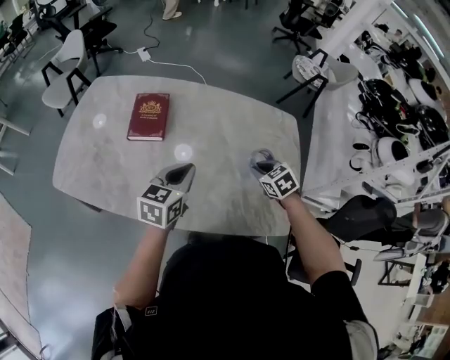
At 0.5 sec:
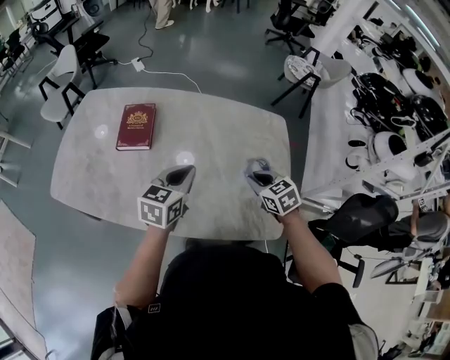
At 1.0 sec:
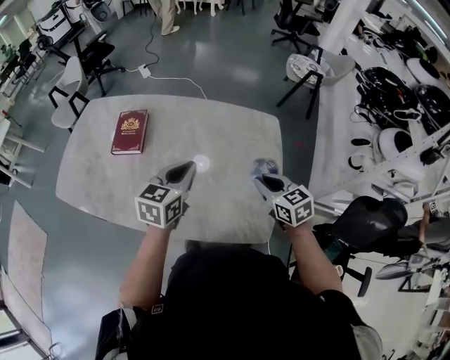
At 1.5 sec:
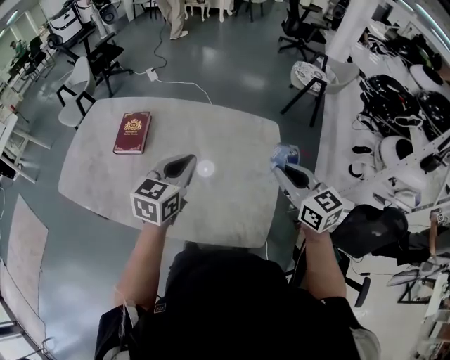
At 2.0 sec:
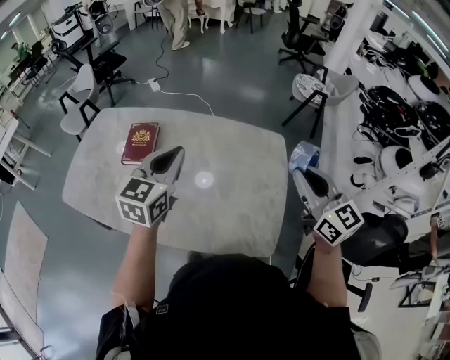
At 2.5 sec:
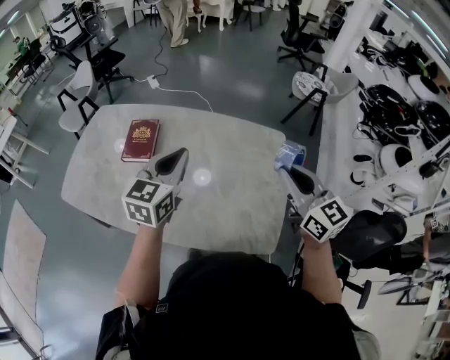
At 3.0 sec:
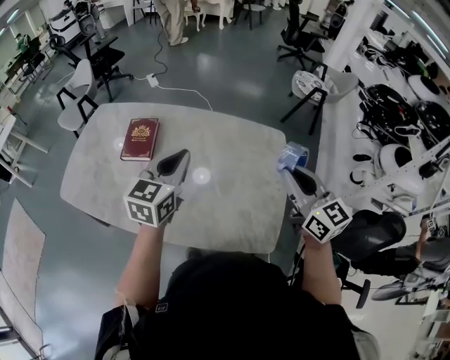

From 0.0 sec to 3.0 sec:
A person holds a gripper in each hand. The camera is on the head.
From 0.0 sec to 1.5 sec: The two grippers go roughly 25 cm to the right and upward. The right gripper tilts its fingers some 40 degrees upward.
From 1.5 sec to 3.0 sec: The left gripper heads to the left, covering roughly 10 cm, while the right gripper travels to the left and upward by roughly 10 cm.

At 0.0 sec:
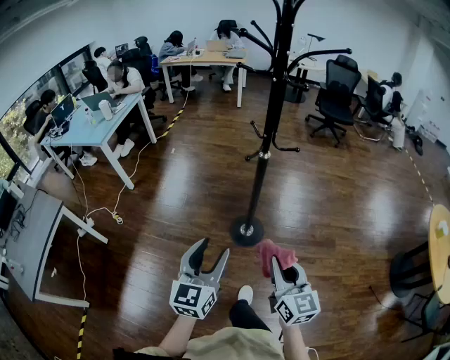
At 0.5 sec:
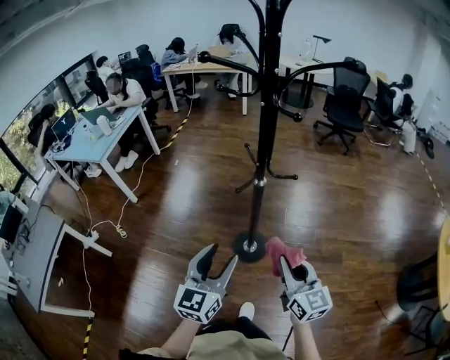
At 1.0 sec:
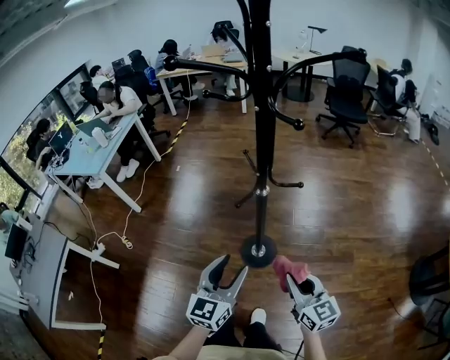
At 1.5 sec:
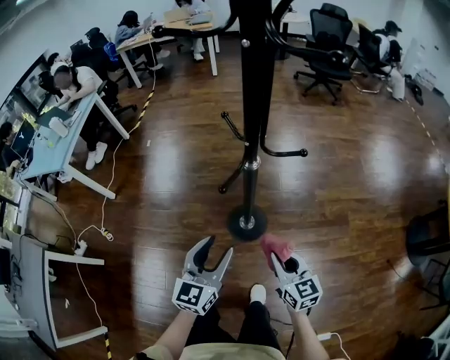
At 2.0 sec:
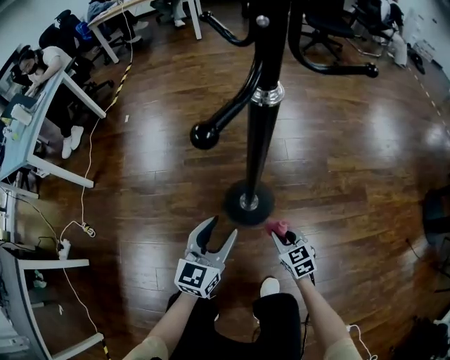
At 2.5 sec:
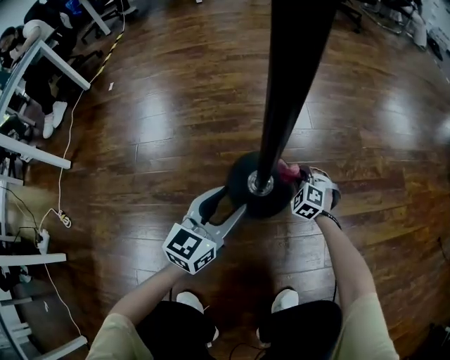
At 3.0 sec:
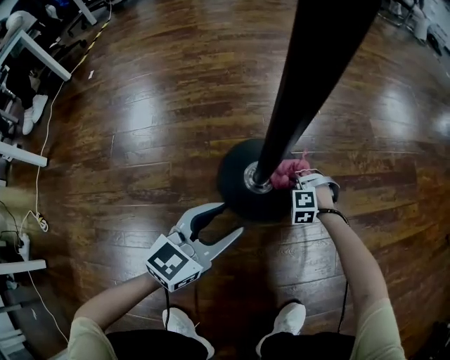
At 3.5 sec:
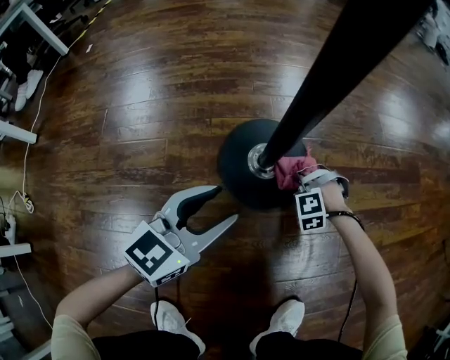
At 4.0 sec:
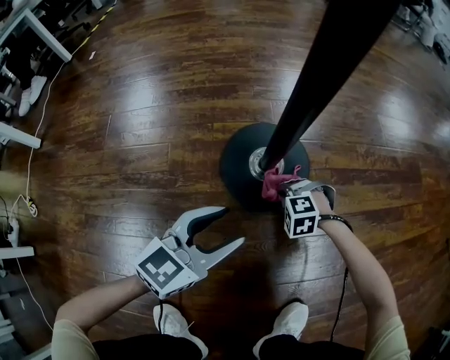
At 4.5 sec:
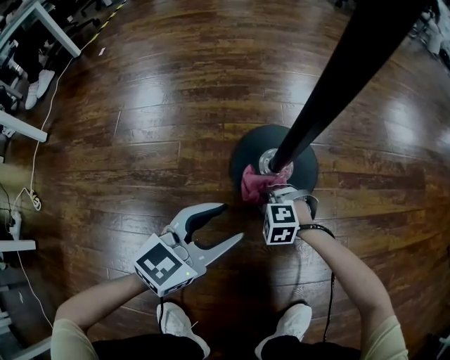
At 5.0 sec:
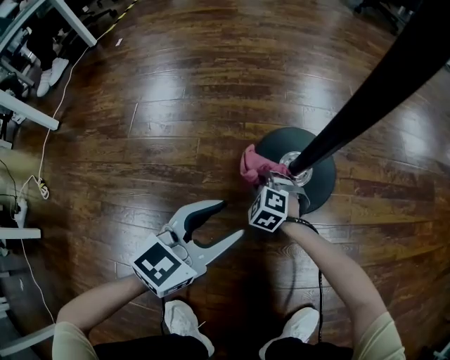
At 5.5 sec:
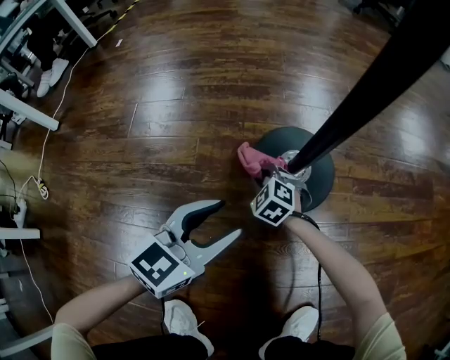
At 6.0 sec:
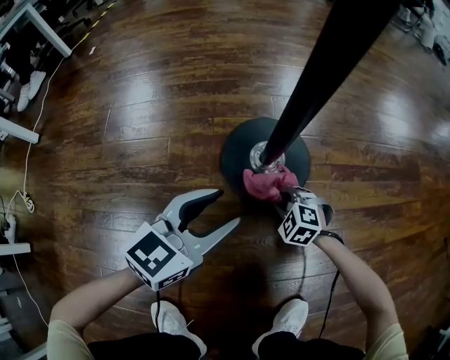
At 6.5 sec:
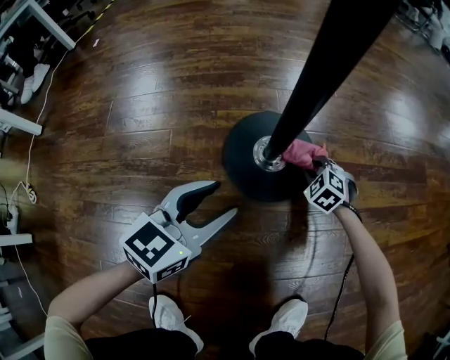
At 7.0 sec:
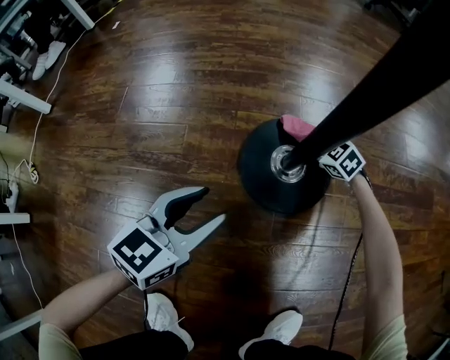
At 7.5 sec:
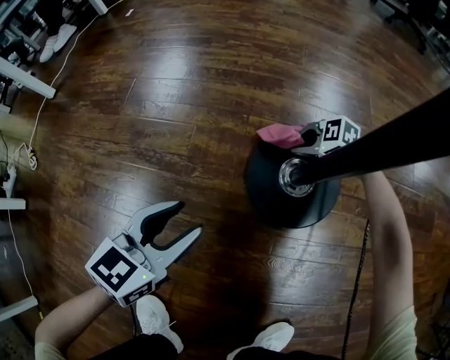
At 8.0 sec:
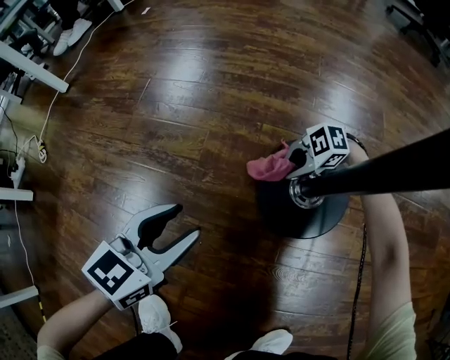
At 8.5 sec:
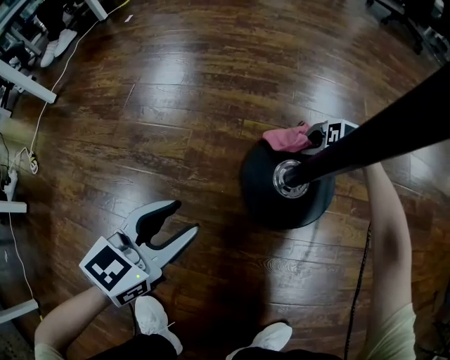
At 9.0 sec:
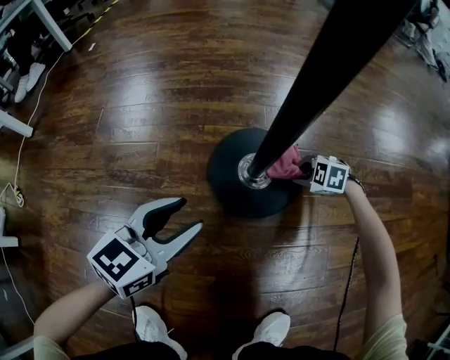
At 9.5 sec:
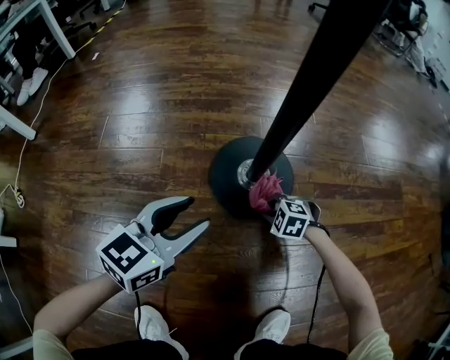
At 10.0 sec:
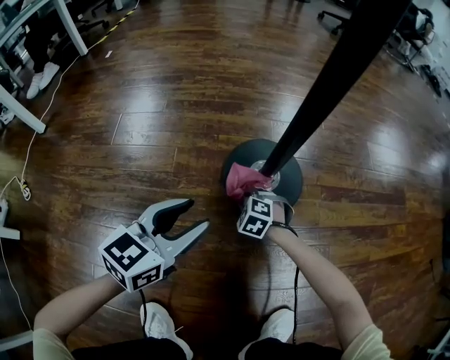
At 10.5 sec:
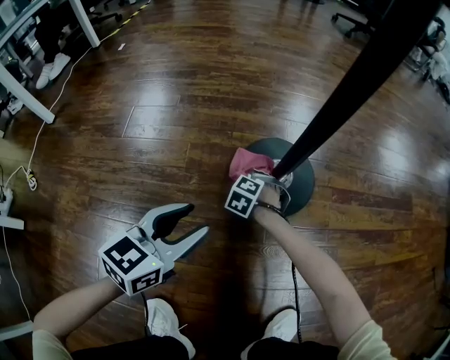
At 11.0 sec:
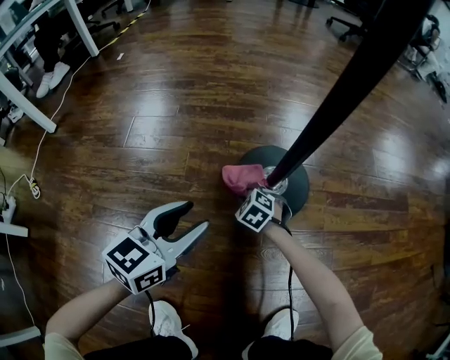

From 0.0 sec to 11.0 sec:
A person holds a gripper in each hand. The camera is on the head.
From 0.0 sec to 2.0 sec: Both grippers travel together downward and forward, roughly 60 cm. The right gripper points its fingers about 30 degrees further downward. Meanwhile the left gripper swivels some 20 degrees.
From 2.0 sec to 3.5 sec: Both grippers move downward, approximately 40 cm. The left gripper changes its angle by about 20 degrees; the right gripper rolls counterclockwise, seen from behind, by roughly 80 degrees.
From 3.5 sec to 5.5 sec: The left gripper moves roughly 5 cm. Meanwhile the right gripper ends up approximately 25 cm from where it was, and twists roughly 40 degrees clockwise, seen from behind.
From 5.5 sec to 7.5 sec: The left gripper changes place by some 5 cm; the right gripper swivels some 40 degrees.
From 7.5 sec to 9.0 sec: The right gripper shifts by approximately 20 cm; the left gripper shifts by about 10 cm.
From 9.0 sec to 11.0 sec: The left gripper ends up roughly 10 cm from where it was. The right gripper changes place by approximately 25 cm, and turns by approximately 20 degrees.

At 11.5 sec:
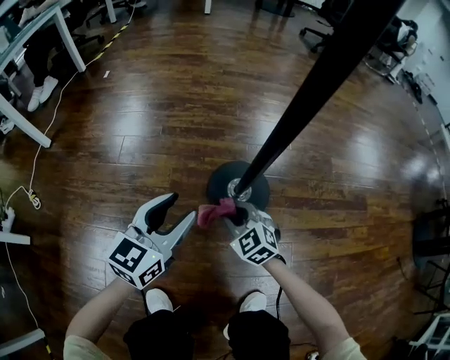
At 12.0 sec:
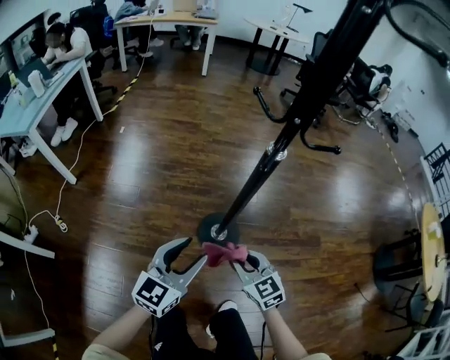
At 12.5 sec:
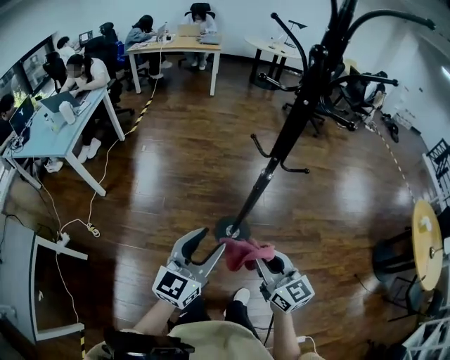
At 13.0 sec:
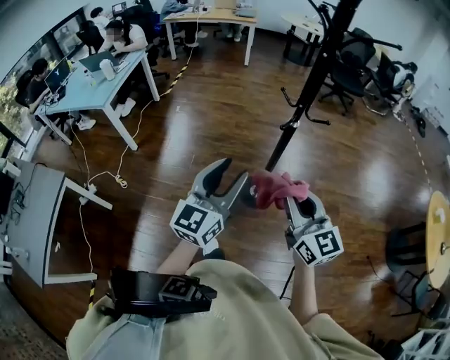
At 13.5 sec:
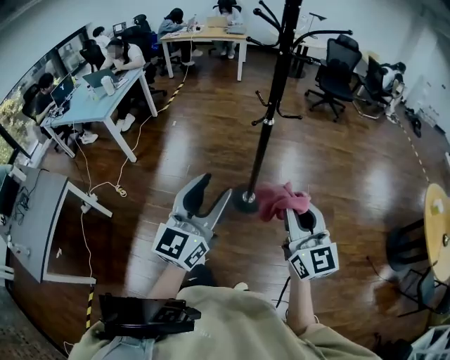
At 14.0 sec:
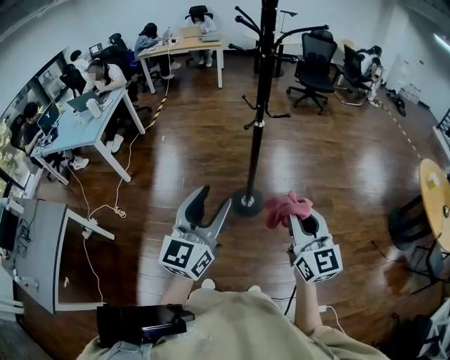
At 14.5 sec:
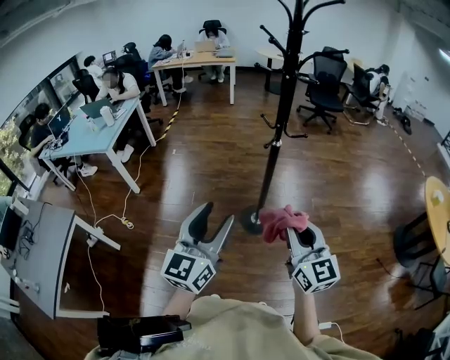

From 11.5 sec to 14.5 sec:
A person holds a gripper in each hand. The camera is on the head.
From 11.5 sec to 13.0 sec: The two grippers go about 80 cm upward. The left gripper turns by about 20 degrees; the right gripper angles its fingers upward, by about 40 degrees.
From 13.0 sec to 14.5 sec: Both grippers move backward, some 15 cm.

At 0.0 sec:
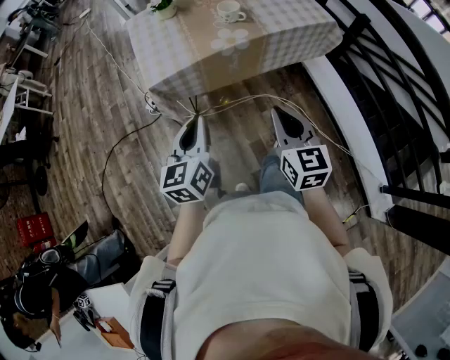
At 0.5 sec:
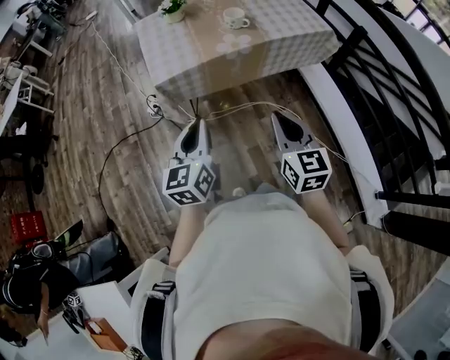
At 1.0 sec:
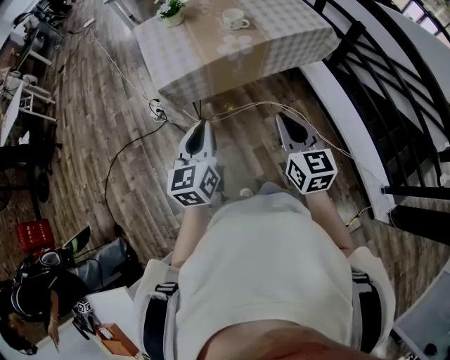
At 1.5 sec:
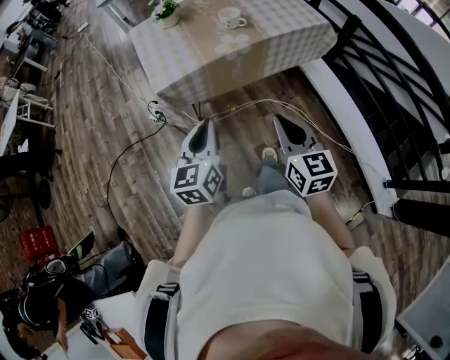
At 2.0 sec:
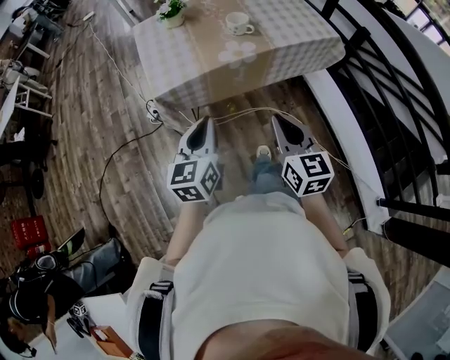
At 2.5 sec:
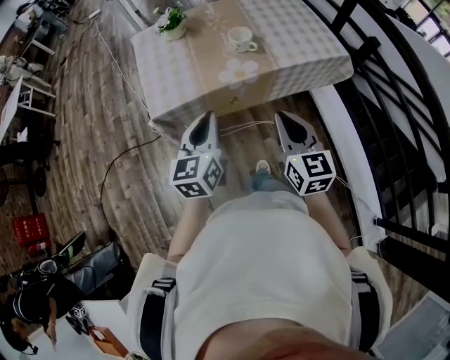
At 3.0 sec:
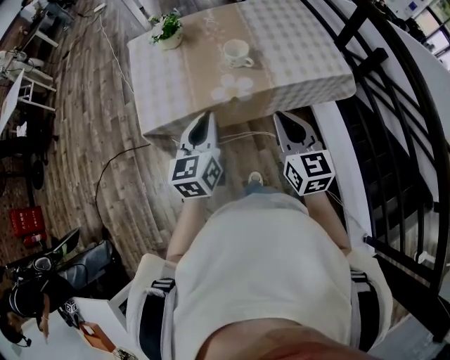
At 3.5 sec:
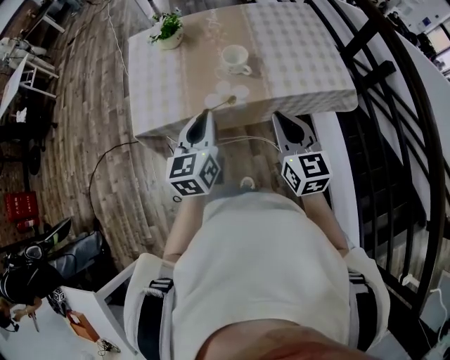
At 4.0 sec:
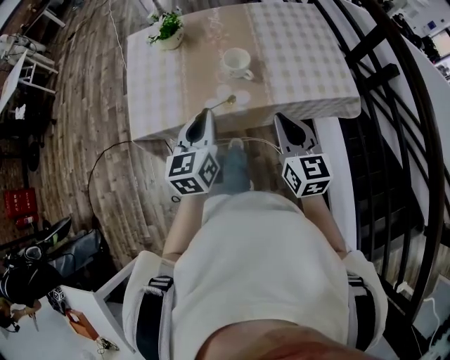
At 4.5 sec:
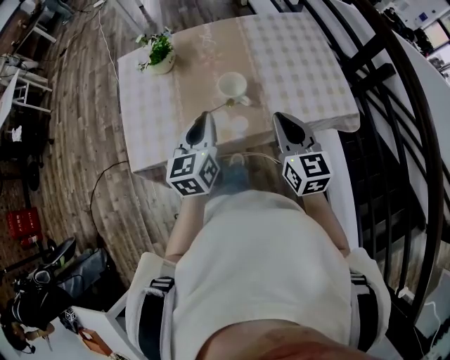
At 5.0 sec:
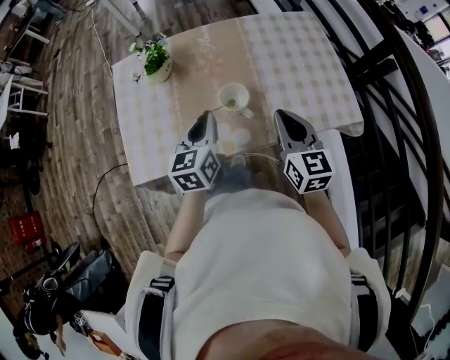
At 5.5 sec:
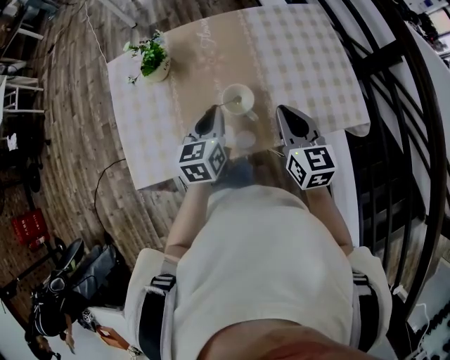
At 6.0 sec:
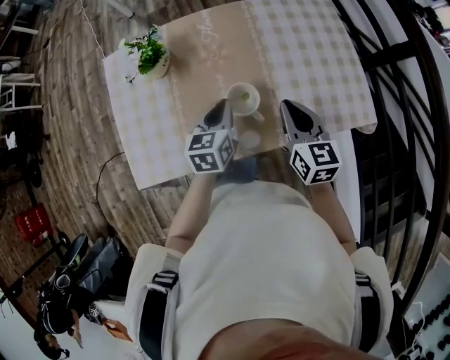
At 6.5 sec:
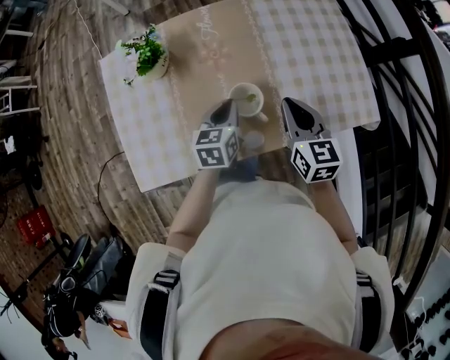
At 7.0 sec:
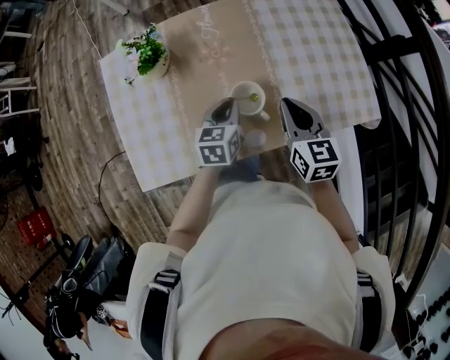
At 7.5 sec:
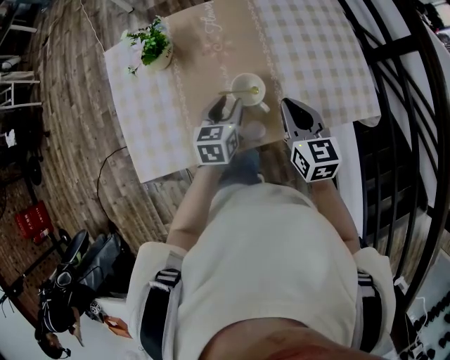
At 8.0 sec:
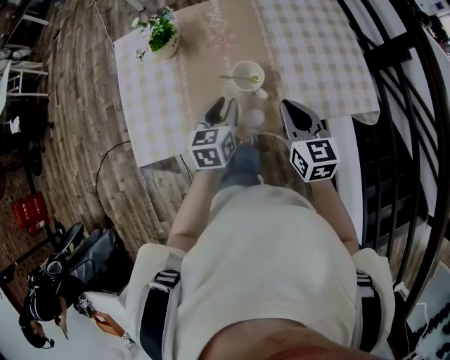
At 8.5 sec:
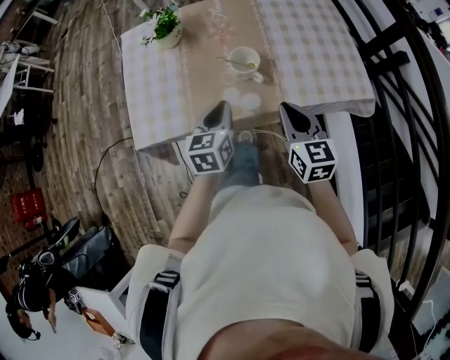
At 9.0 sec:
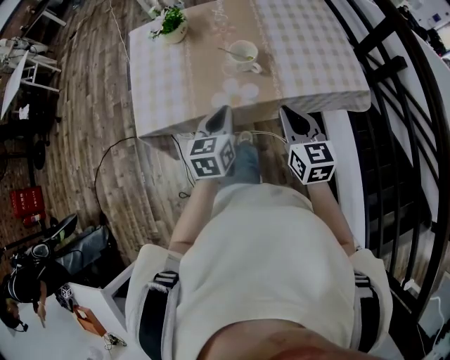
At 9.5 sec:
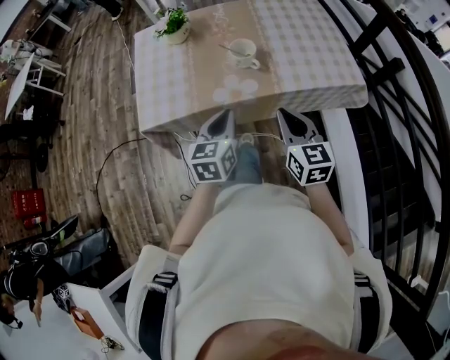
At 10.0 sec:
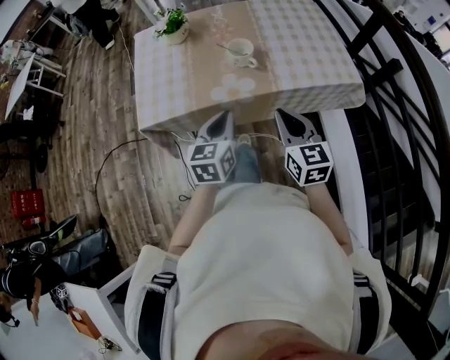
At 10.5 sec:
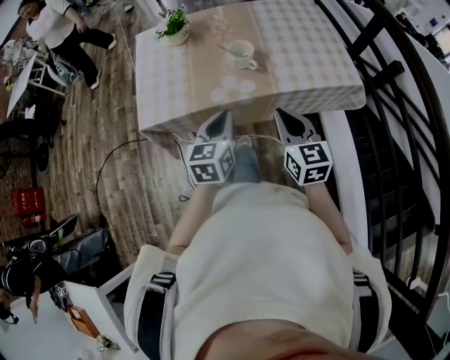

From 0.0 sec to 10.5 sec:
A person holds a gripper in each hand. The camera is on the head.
From 0.0 sec to 2.0 sec: The grippers move only a little.
From 2.0 sec to 4.0 sec: Both grippers move forward and to the right, about 20 cm.
From 4.0 sec to 6.5 sec: The left gripper shifts roughly 15 cm downward and forward, and rotates some 20 degrees. Meanwhile the right gripper heads forward, covering some 10 cm.
From 6.5 sec to 8.5 sec: The two grippers go roughly 5 cm backward. The left gripper opens and closes again.
From 8.5 sec to 10.5 sec: The left gripper is displaced backward by about 5 cm, while the right gripper ends up some 5 cm from where it was.
